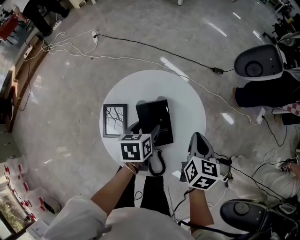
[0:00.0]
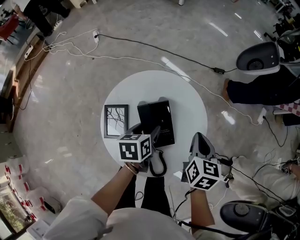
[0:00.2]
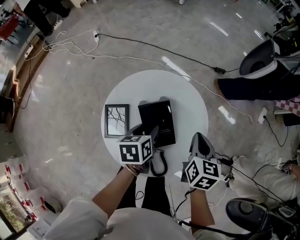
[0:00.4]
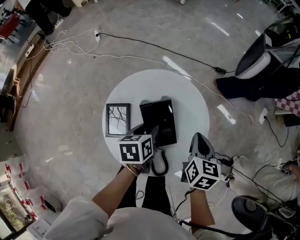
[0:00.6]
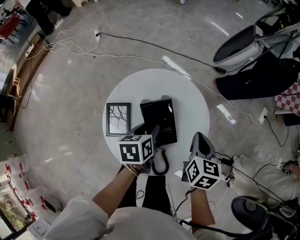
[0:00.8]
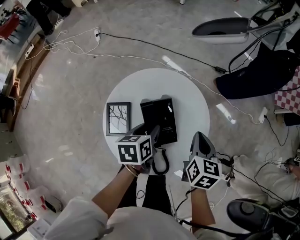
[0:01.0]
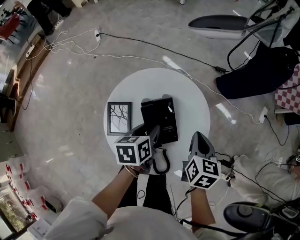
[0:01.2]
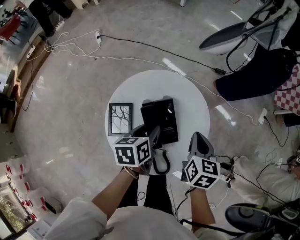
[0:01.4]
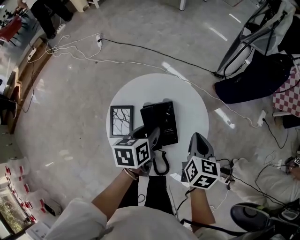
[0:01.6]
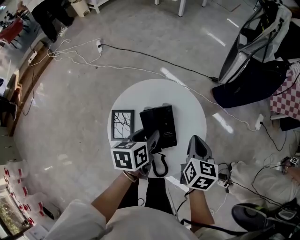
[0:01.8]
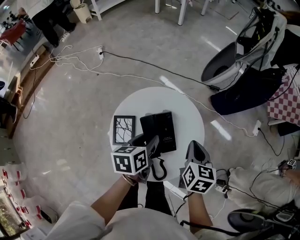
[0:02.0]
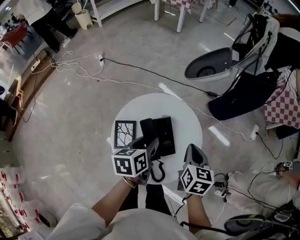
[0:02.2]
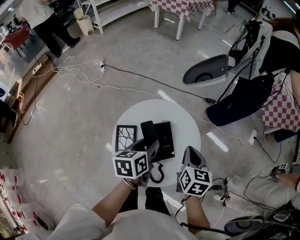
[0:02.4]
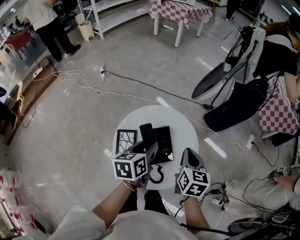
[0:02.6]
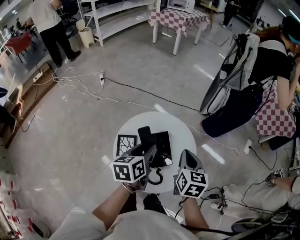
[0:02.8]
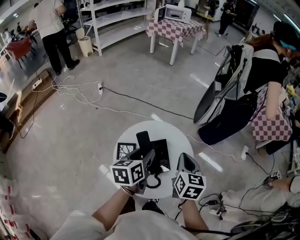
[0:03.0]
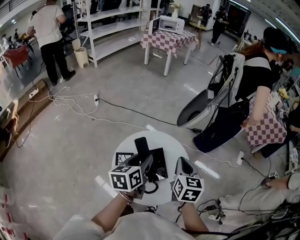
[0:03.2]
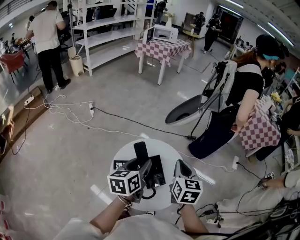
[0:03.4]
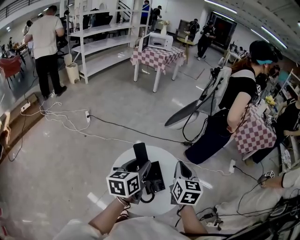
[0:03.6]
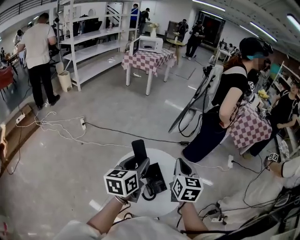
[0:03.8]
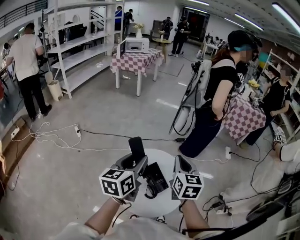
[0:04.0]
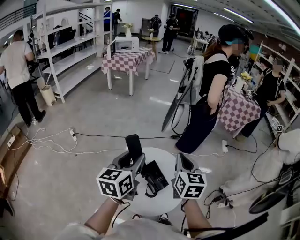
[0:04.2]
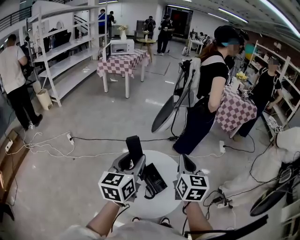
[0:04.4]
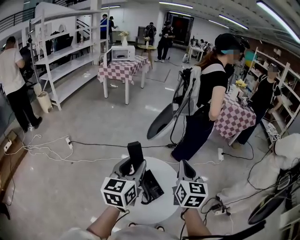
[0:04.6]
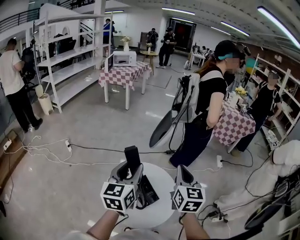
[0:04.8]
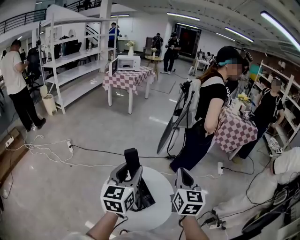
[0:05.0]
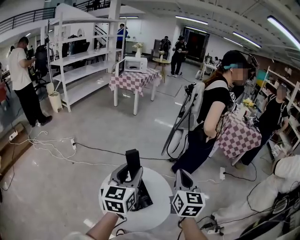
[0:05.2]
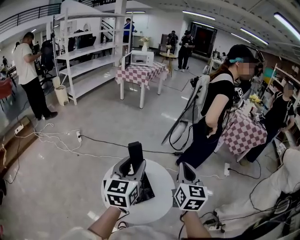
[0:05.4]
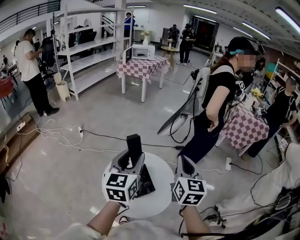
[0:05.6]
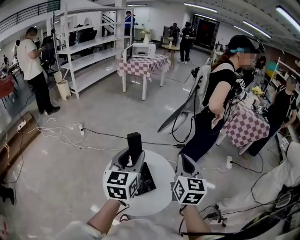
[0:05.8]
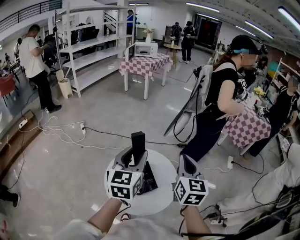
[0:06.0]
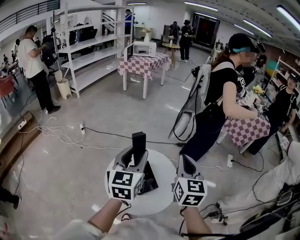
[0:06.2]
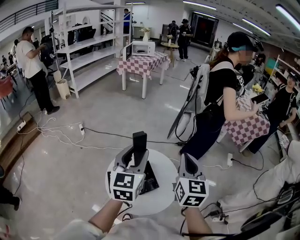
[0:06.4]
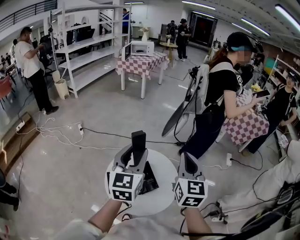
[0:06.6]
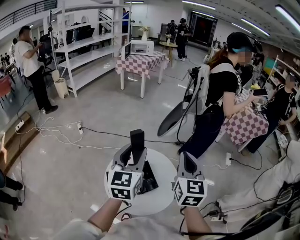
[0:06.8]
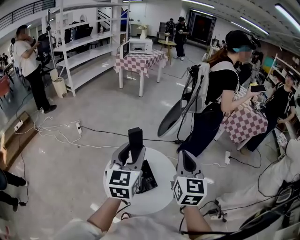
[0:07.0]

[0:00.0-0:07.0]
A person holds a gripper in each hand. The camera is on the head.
0:00.0 to 0:01.4: The left gripper closes its fingers.
0:01.4 to 0:02.8: Both grippers travel together upward, some 10 cm.
0:02.8 to 0:04.2: The two grippers go some 15 cm upward. The left gripper changes its angle by about 30 degrees. The right gripper swivels about 20 degrees.
0:04.2 to 0:05.6: The right gripper goes roughly 10 cm to the right and upward. Meanwhile the left gripper goes about 5 cm to the right, and rotates about 20 degrees.
0:05.6 to 0:07.0: There are only small adjustments of the grippers.

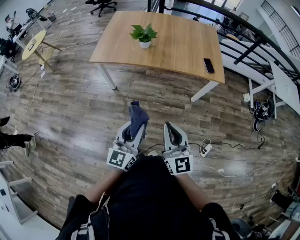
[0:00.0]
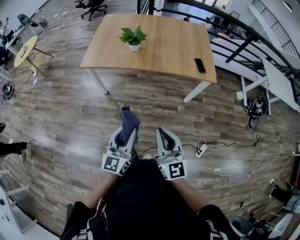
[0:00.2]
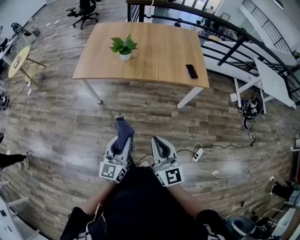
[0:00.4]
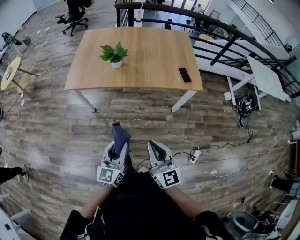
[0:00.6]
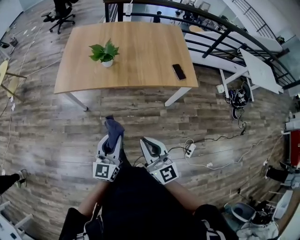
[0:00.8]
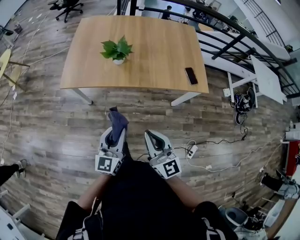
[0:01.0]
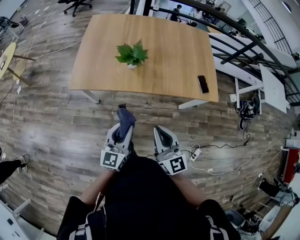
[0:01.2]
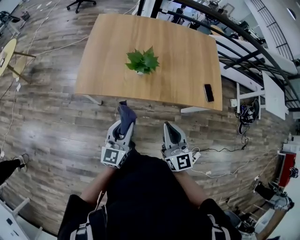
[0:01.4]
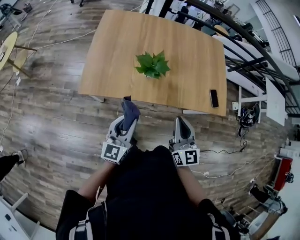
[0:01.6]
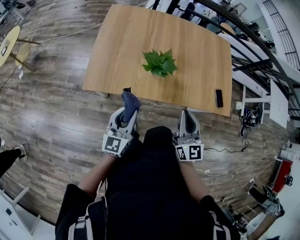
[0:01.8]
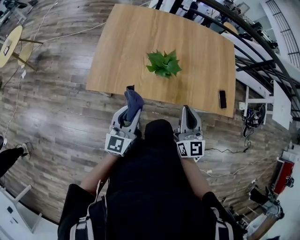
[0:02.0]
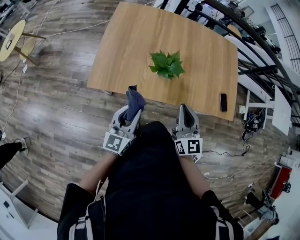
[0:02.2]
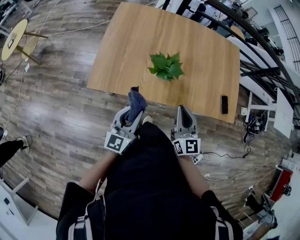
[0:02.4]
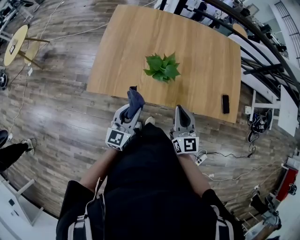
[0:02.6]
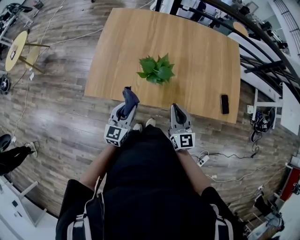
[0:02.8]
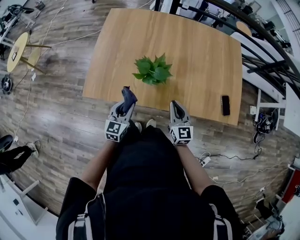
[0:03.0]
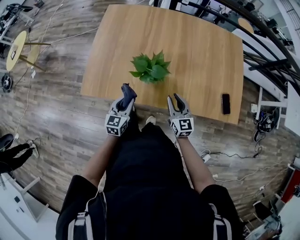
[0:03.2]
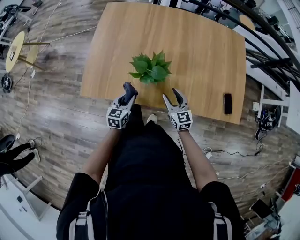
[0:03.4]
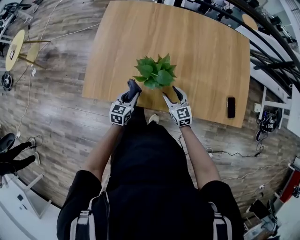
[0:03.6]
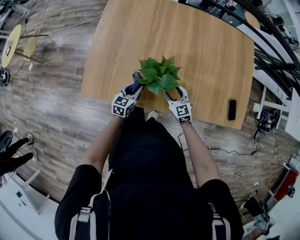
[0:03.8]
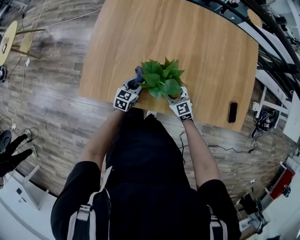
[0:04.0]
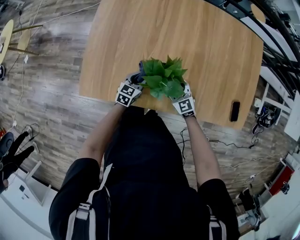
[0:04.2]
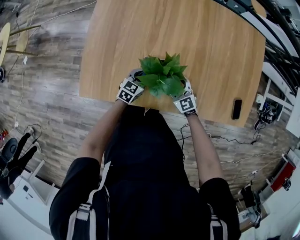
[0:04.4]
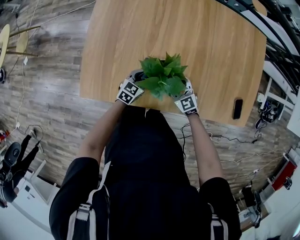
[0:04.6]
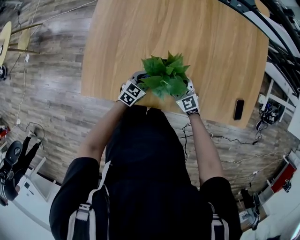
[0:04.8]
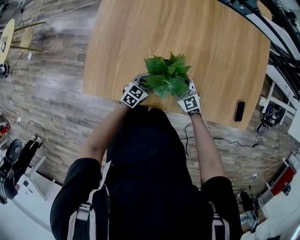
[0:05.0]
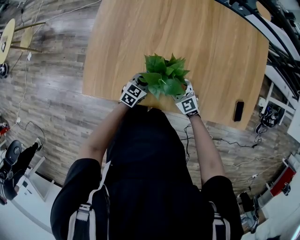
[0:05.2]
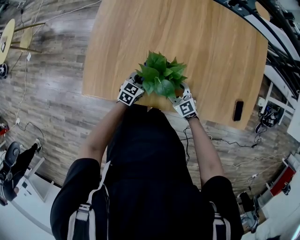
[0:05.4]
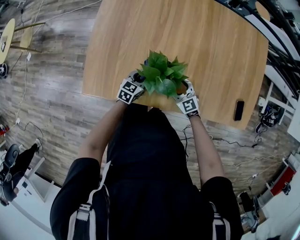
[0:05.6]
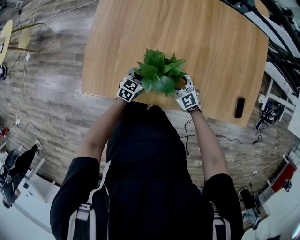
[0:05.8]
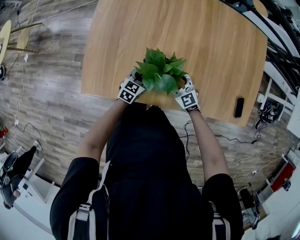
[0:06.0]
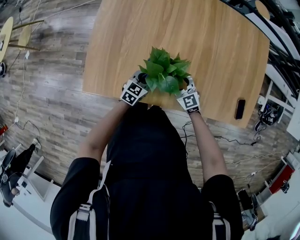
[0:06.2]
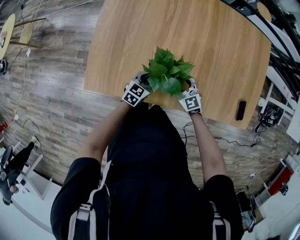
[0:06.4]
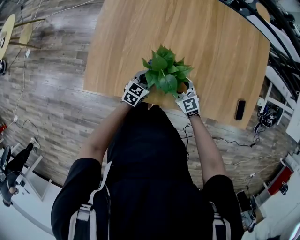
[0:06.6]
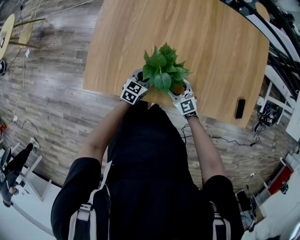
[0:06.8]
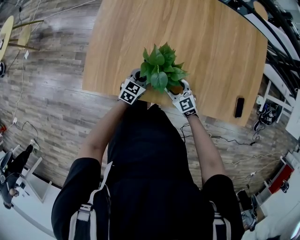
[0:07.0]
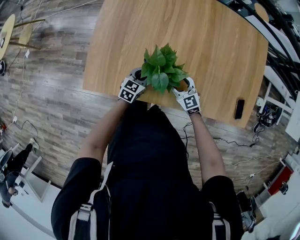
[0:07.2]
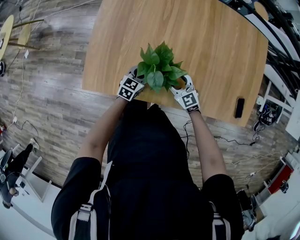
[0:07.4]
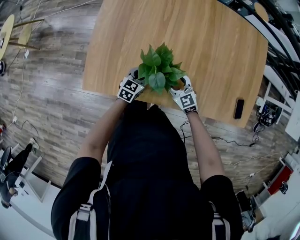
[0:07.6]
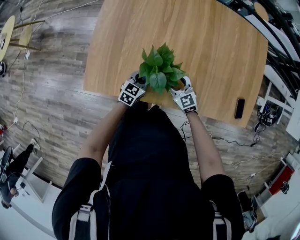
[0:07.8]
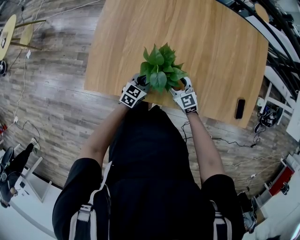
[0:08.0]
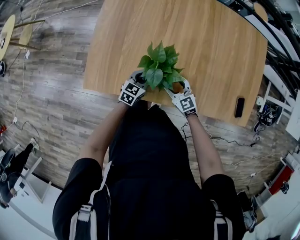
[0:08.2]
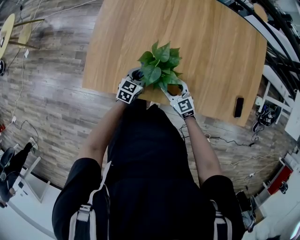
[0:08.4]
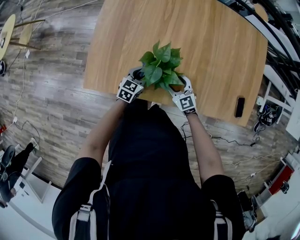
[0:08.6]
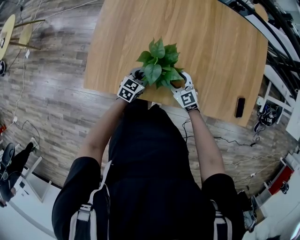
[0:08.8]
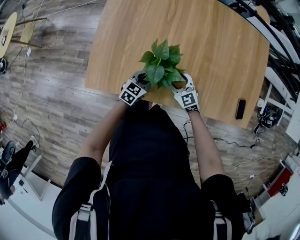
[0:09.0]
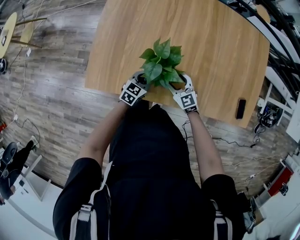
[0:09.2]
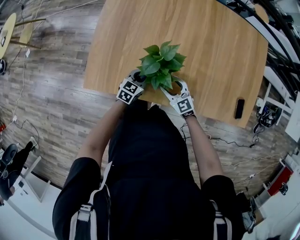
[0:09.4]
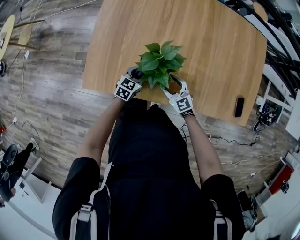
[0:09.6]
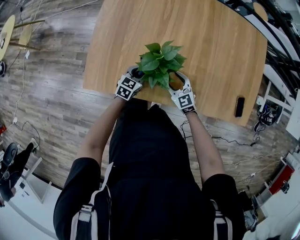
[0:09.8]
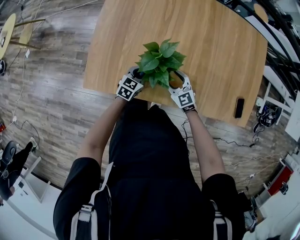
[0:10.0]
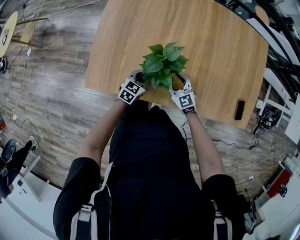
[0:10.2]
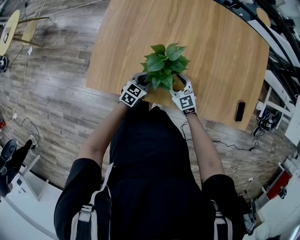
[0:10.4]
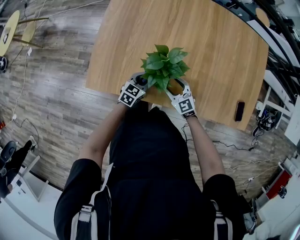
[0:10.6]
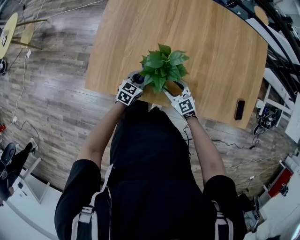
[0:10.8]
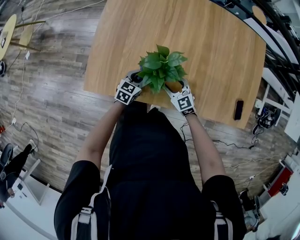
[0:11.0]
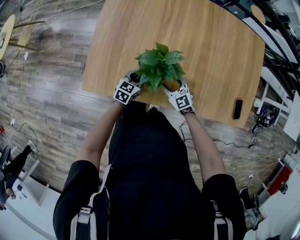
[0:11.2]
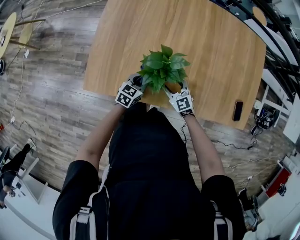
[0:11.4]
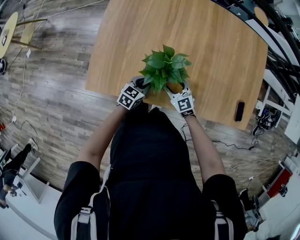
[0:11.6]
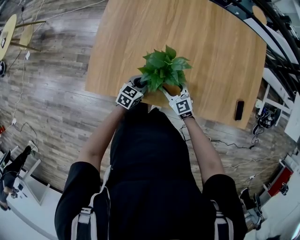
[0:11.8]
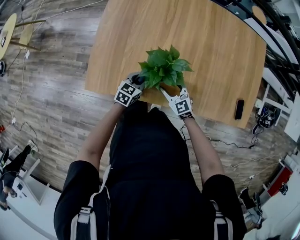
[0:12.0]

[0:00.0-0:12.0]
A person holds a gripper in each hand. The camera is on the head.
0:00.0 to 0:01.6: The right gripper goes some 35 cm forward, while the left gripper shifts approximately 35 cm forward and to the left.
0:01.6 to 0:03.0: The two grippers go roughly 20 cm downward and forward.
0:03.0 to 0:04.4: The left gripper shifts approximately 20 cm forward and downward, and turns by approximately 20 degrees; the right gripper shifts roughly 20 cm downward, forward and to the left, turns by some 30 degrees, and opens up.
0:04.4 to 0:09.0: The grippers make only small movements.
0:09.0 to 0:12.0: The grippers stay close to where they were, moving slightly.

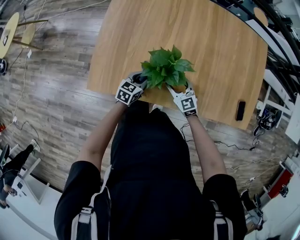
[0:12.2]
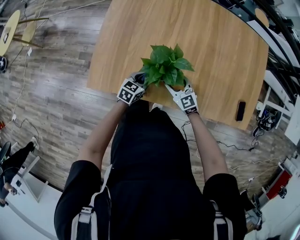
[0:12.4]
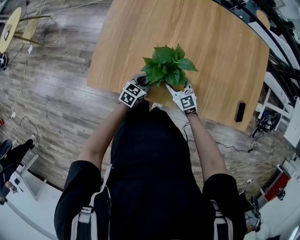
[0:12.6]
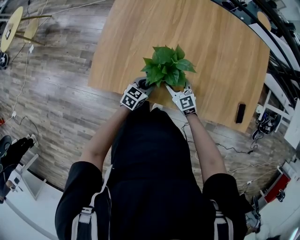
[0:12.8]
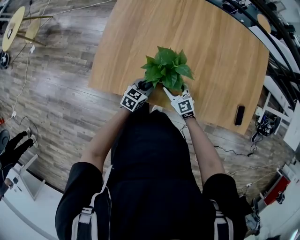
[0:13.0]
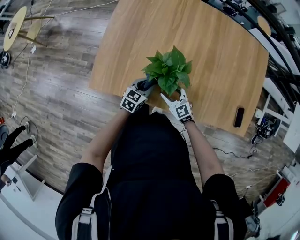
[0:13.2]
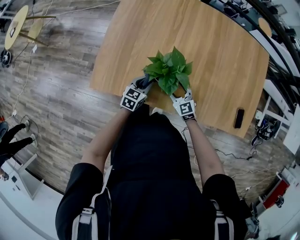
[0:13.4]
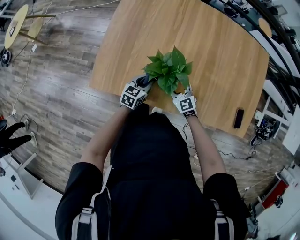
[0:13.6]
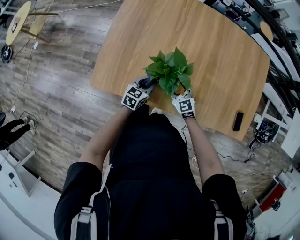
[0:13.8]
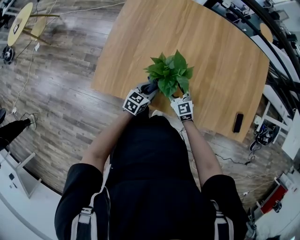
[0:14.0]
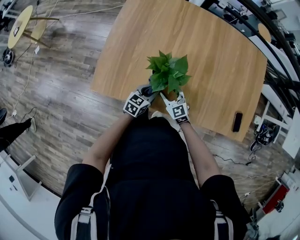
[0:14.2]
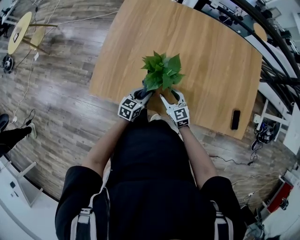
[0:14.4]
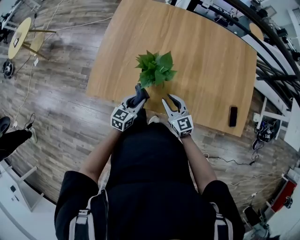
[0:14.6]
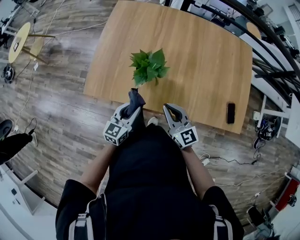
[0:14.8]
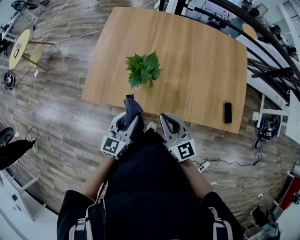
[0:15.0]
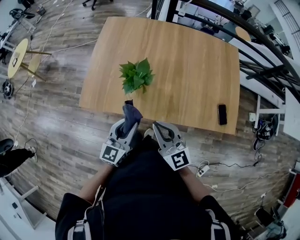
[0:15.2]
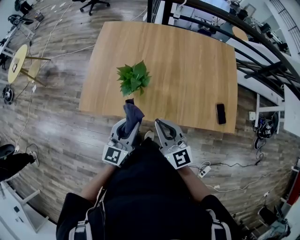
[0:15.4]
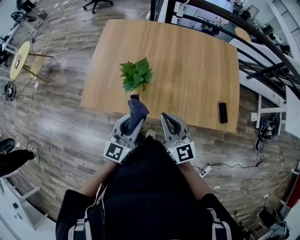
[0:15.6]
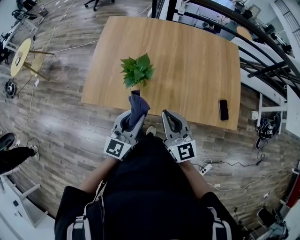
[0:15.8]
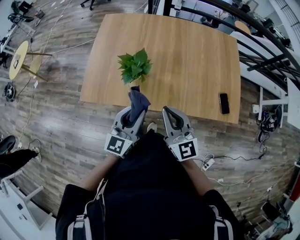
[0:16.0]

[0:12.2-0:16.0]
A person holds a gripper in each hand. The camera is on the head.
0:12.2 to 0:13.4: The grippers stay close to where they were, moving slightly.
0:13.4 to 0:14.8: The grippers both shift upward and backward by about 20 cm. The right gripper rotates roughly 30 degrees, and closes up.
0:14.8 to 0:16.0: The left gripper shifts roughly 15 cm upward and to the right, while the right gripper moves upward, about 10 cm.

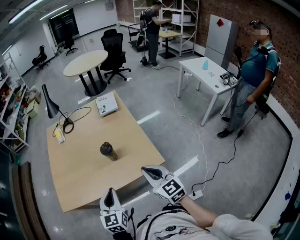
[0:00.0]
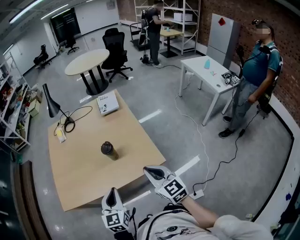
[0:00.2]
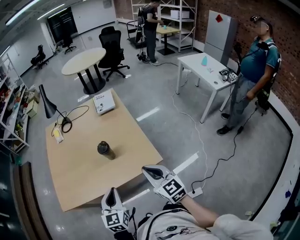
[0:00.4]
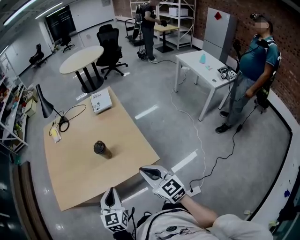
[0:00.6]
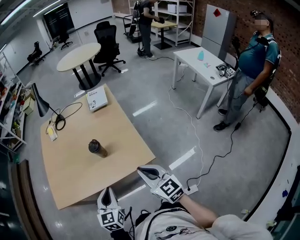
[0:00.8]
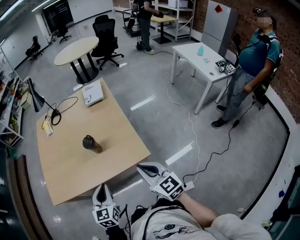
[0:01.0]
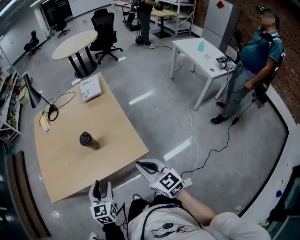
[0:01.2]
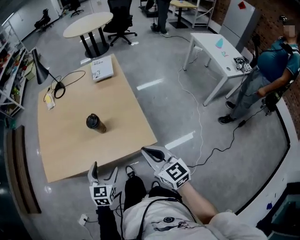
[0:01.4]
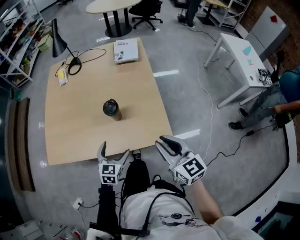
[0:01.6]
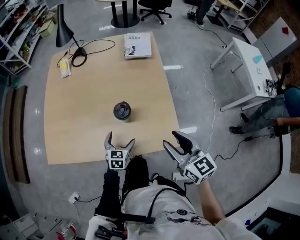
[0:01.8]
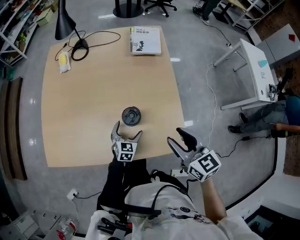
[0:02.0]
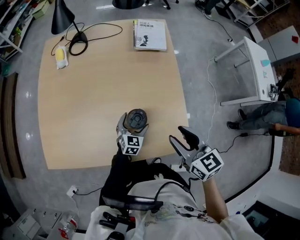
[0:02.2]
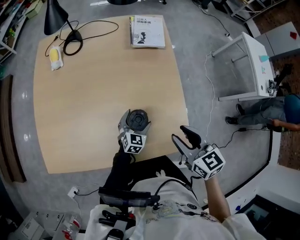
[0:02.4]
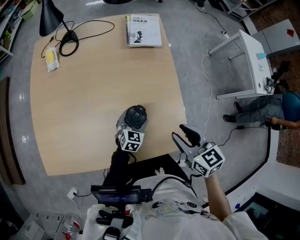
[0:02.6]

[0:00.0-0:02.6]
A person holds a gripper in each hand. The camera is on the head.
0:00.0 to 0:01.2: The left gripper goes about 10 cm downward and to the right, and opens up. Meanwhile the right gripper moves to the right and downward, approximately 10 cm.
0:01.2 to 0:02.6: The left gripper moves forward and downward, some 40 cm, and opens, while the right gripper travels forward by some 25 cm, and swivels some 20 degrees.
